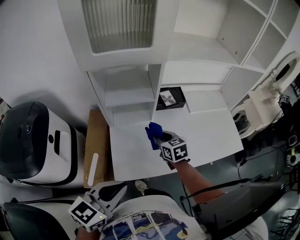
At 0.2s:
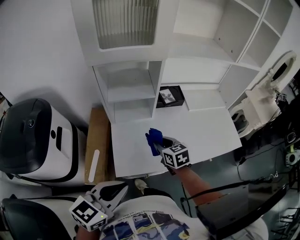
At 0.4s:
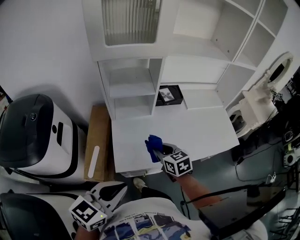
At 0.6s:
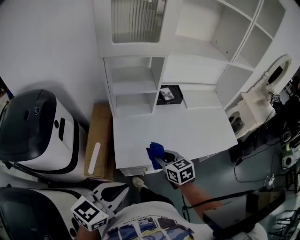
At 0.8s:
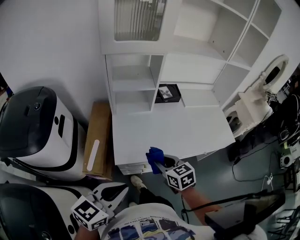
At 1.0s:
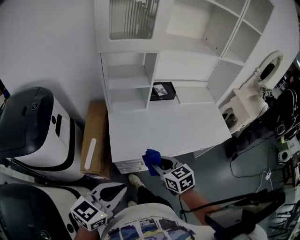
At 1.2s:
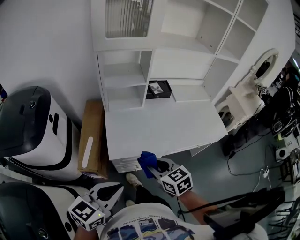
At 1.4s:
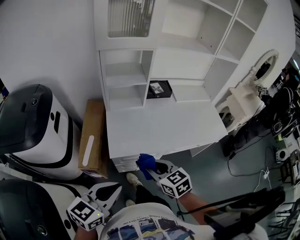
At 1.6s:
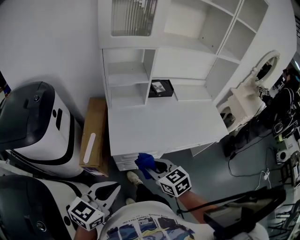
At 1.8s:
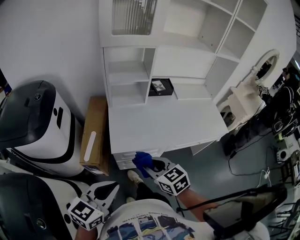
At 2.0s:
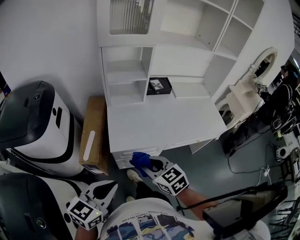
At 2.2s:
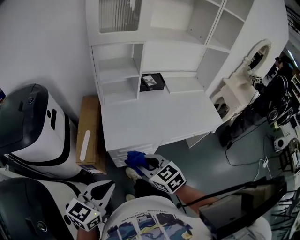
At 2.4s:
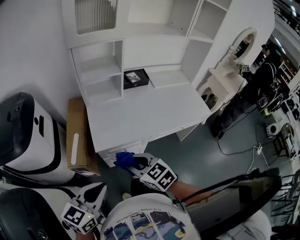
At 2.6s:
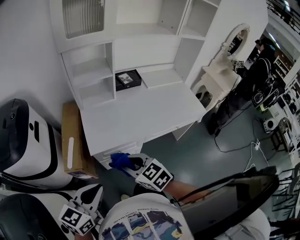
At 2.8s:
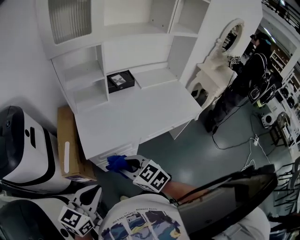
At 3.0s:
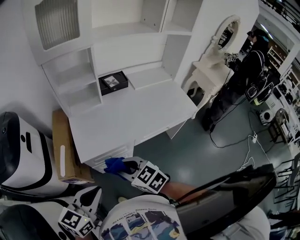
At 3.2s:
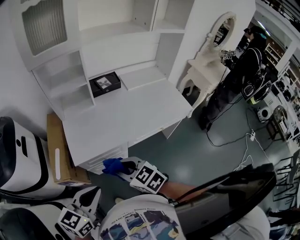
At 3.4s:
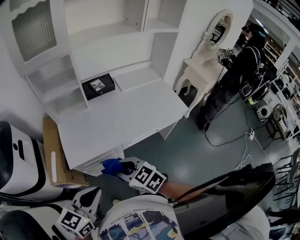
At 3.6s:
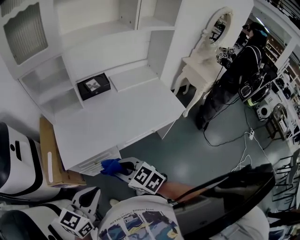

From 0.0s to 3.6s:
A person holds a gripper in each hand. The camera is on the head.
From 0.0s to 1.8s: The left gripper moves backward, roughly 20 cm, while the right gripper moves backward, approximately 35 cm.
From 1.8s to 3.6s: The grippers both shift to the right by roughly 15 cm.

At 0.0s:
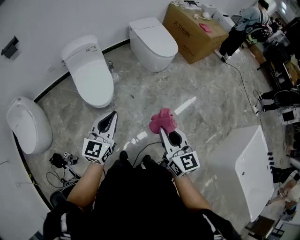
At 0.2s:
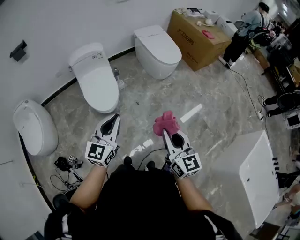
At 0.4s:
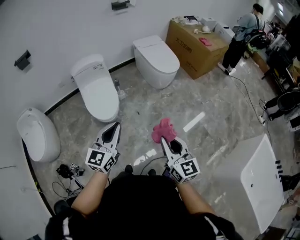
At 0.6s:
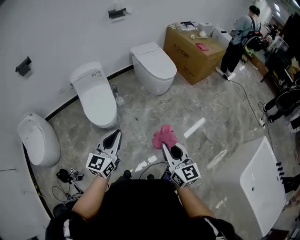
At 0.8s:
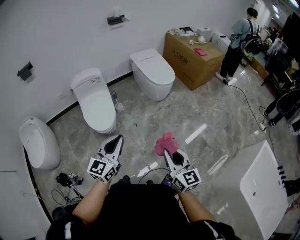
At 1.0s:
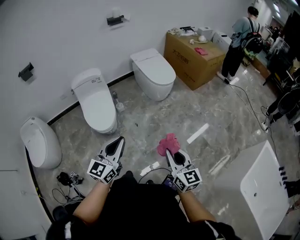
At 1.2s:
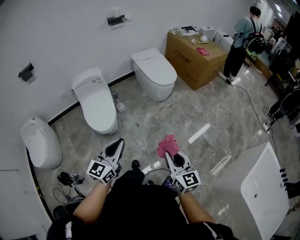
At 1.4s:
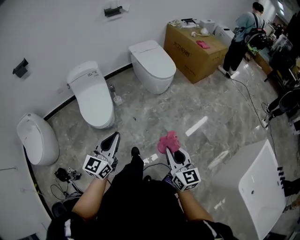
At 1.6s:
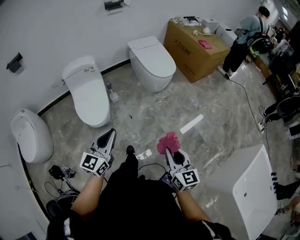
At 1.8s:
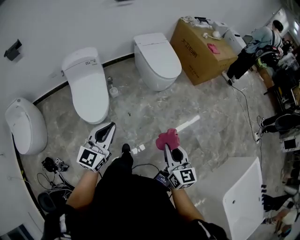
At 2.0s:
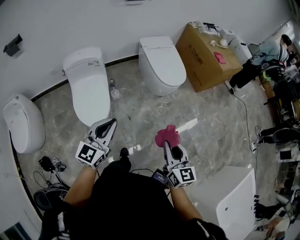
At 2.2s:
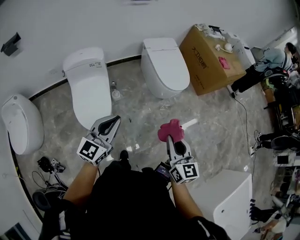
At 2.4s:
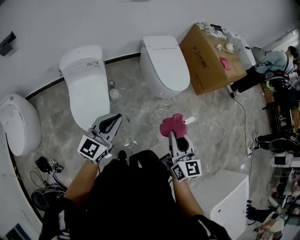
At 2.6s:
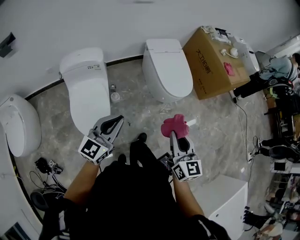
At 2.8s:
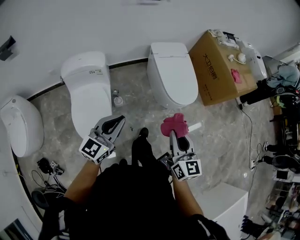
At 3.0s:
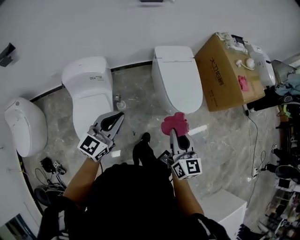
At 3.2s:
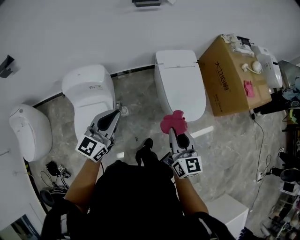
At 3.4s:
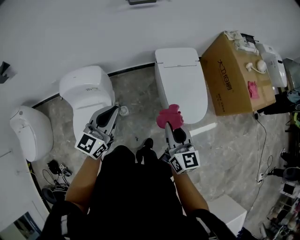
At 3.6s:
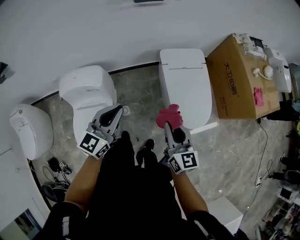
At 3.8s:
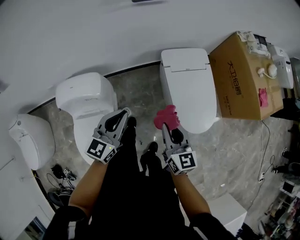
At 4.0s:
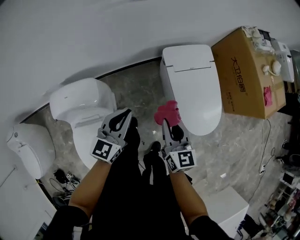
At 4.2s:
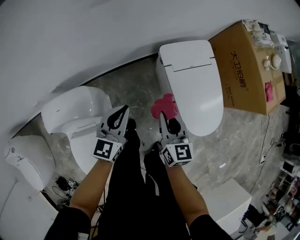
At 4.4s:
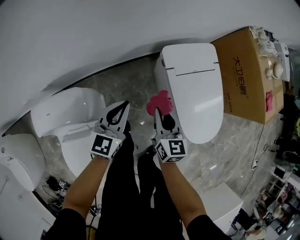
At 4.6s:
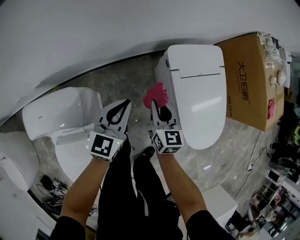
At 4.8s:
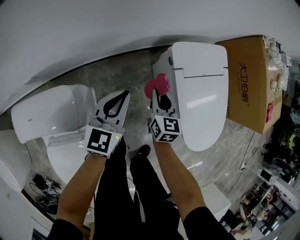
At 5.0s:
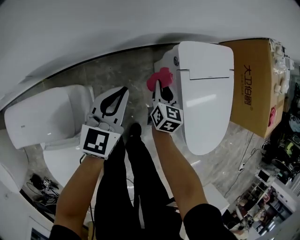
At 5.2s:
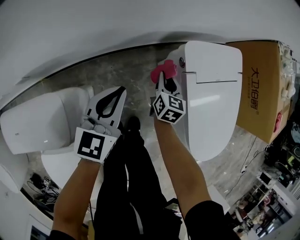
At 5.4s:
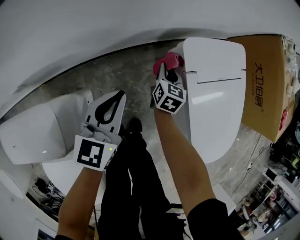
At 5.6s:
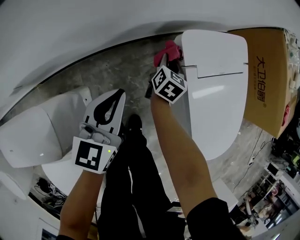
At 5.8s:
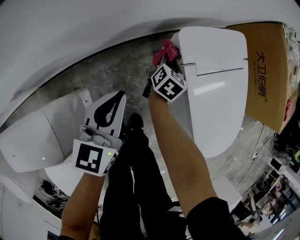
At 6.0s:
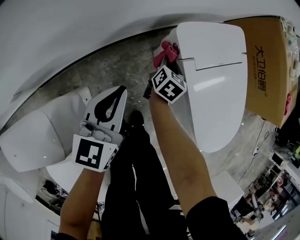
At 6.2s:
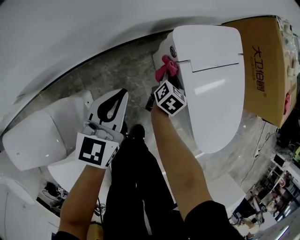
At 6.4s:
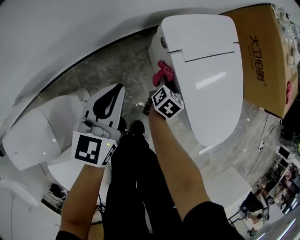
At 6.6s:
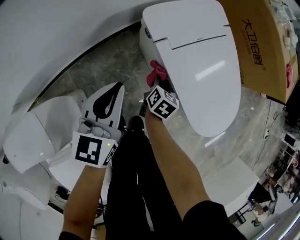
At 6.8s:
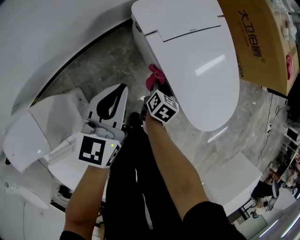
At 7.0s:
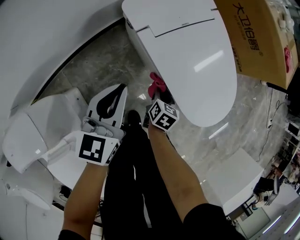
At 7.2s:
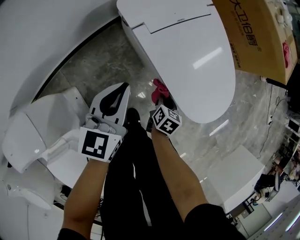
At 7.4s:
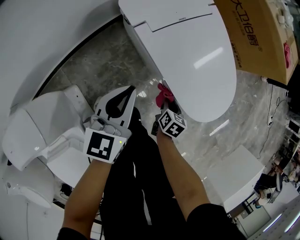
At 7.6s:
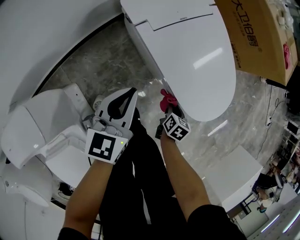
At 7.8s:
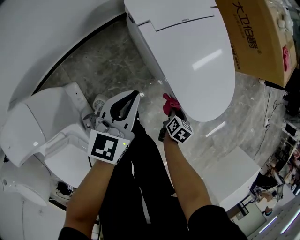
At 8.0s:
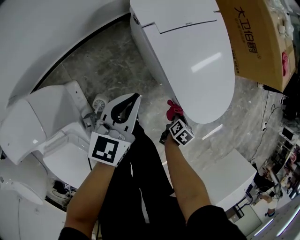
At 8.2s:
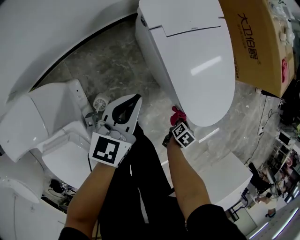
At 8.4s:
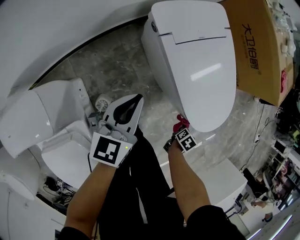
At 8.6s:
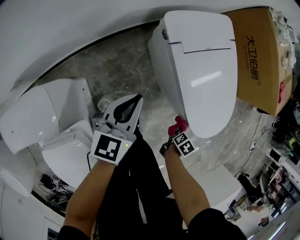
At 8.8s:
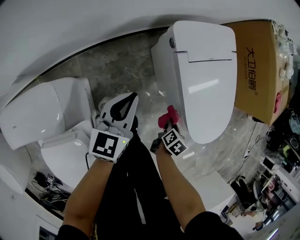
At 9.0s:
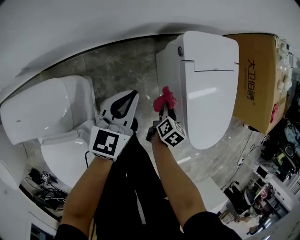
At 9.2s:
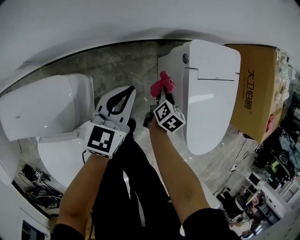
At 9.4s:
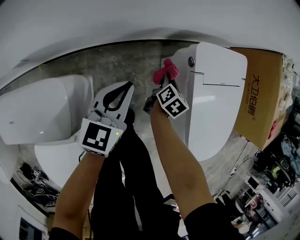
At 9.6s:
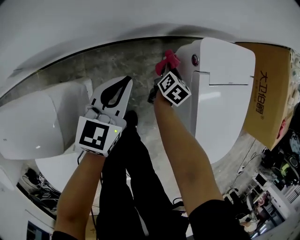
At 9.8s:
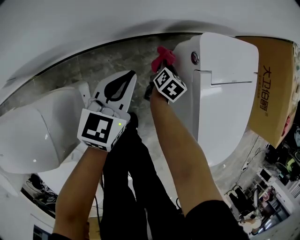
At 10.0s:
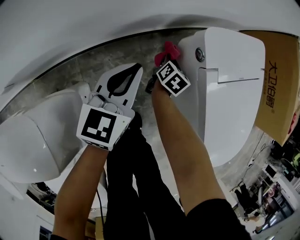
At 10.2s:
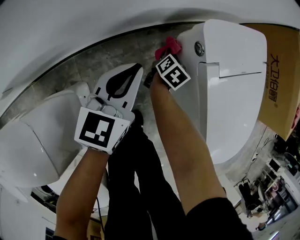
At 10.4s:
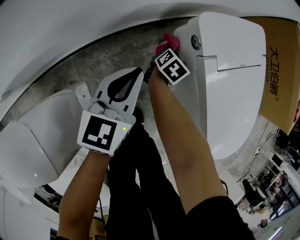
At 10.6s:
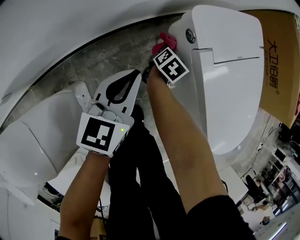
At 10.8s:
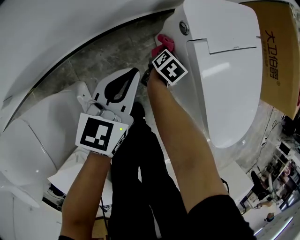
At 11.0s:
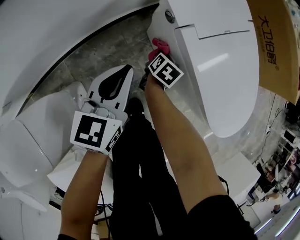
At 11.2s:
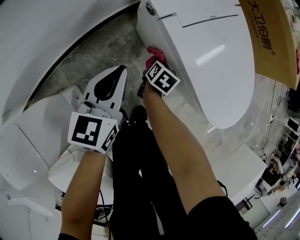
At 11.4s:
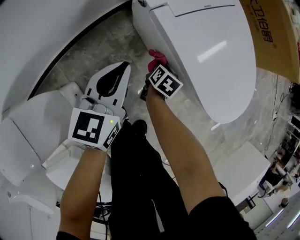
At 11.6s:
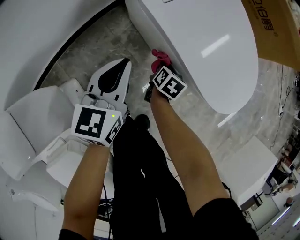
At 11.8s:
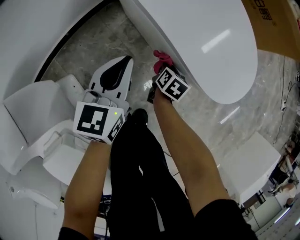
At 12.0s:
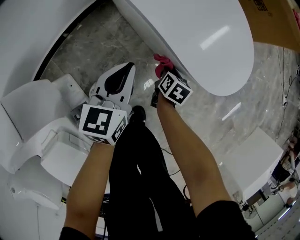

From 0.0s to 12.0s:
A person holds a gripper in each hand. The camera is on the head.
From 0.0s to 1.6s: The left gripper goes roughly 10 cm to the right; the right gripper shifts some 15 cm to the right.
From 1.6s to 3.0s: The two grippers travel together, forward, some 40 cm.
From 3.0s to 4.4s: The left gripper travels forward and downward by about 40 cm, while the right gripper goes roughly 50 cm forward, downward and to the left.
From 4.4s to 6.0s: The left gripper heads downward and forward, covering approximately 15 cm; the right gripper travels downward and forward by about 35 cm, and changes its angle by approximately 40 degrees.
From 6.0s to 7.6s: The right gripper goes about 40 cm to the right and backward, and turns by approximately 20 degrees. The left gripper shifts approximately 20 cm to the right.
From 7.6s to 9.0s: The right gripper changes place by roughly 20 cm. The left gripper shifts by about 15 cm.
From 9.0s to 10.4s: The left gripper goes about 15 cm downward and forward. Meanwhile the right gripper travels forward and downward by about 25 cm.
From 10.4s to 12.0s: The left gripper is displaced to the right and backward by approximately 20 cm; the right gripper shifts about 35 cm to the right and backward.

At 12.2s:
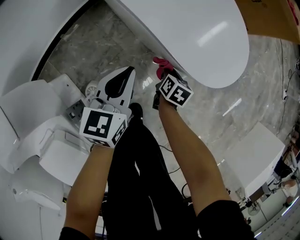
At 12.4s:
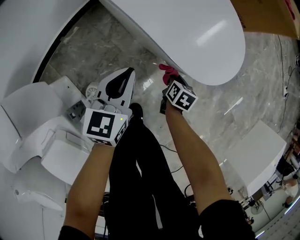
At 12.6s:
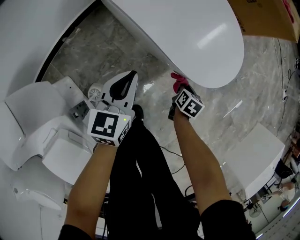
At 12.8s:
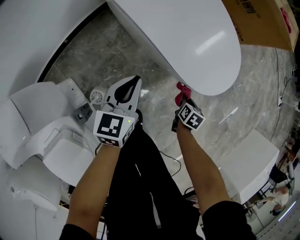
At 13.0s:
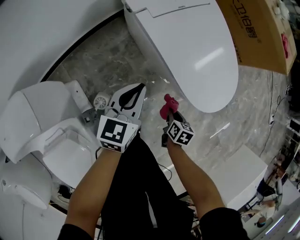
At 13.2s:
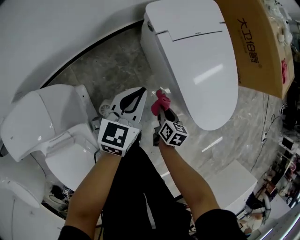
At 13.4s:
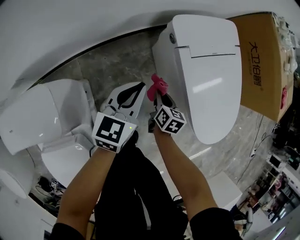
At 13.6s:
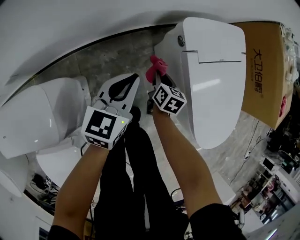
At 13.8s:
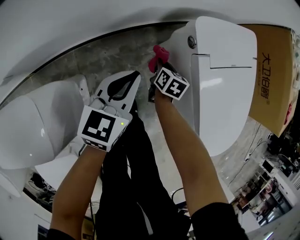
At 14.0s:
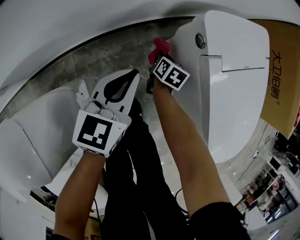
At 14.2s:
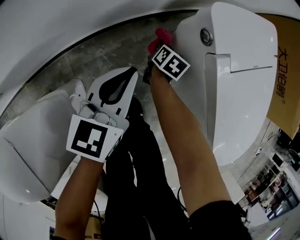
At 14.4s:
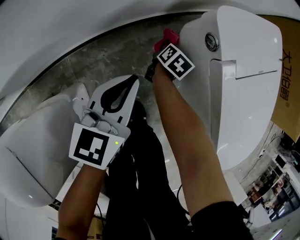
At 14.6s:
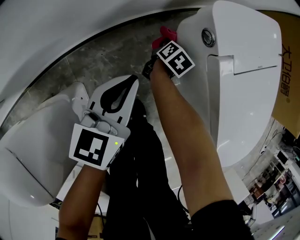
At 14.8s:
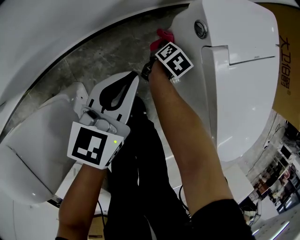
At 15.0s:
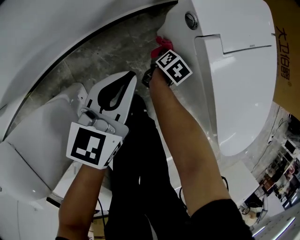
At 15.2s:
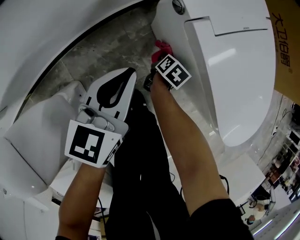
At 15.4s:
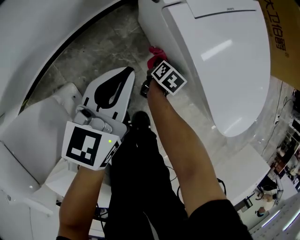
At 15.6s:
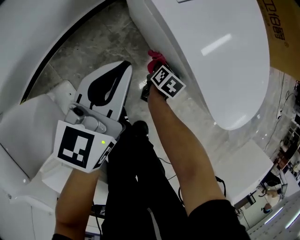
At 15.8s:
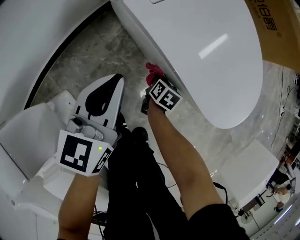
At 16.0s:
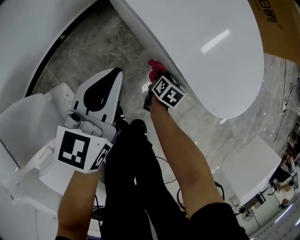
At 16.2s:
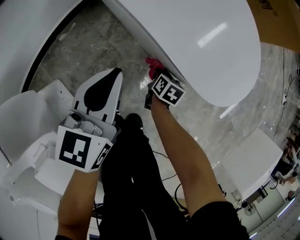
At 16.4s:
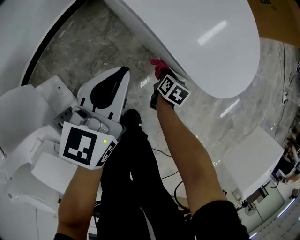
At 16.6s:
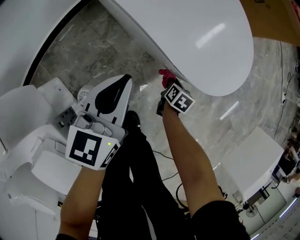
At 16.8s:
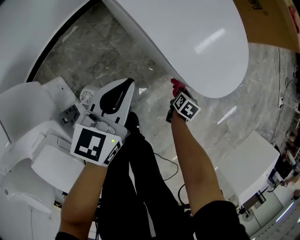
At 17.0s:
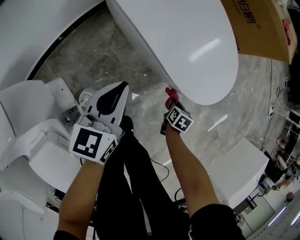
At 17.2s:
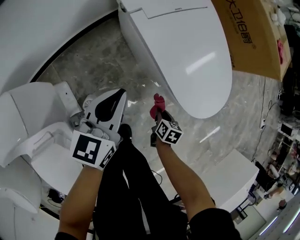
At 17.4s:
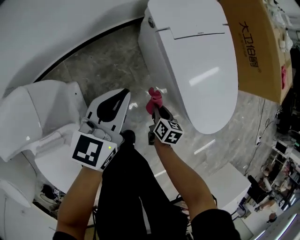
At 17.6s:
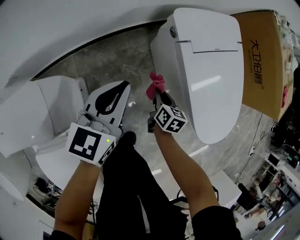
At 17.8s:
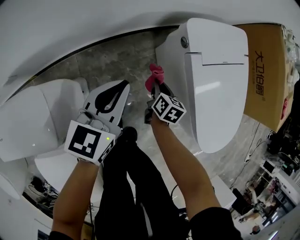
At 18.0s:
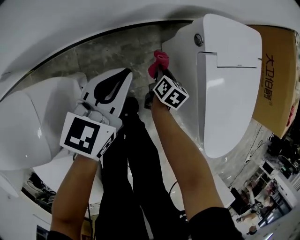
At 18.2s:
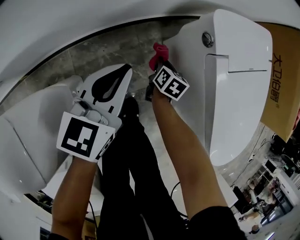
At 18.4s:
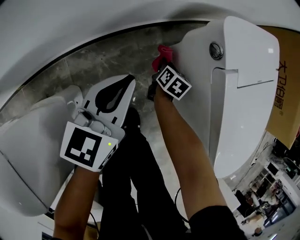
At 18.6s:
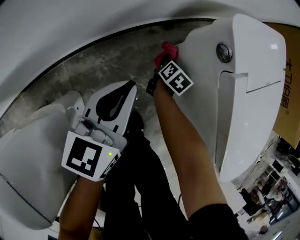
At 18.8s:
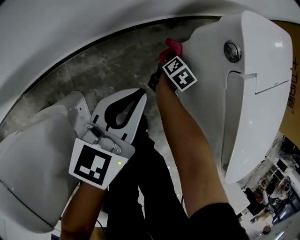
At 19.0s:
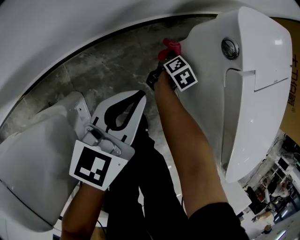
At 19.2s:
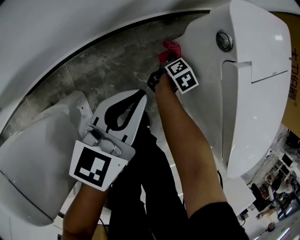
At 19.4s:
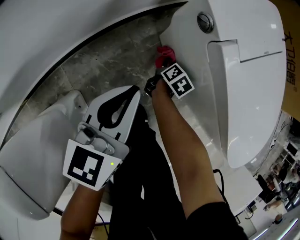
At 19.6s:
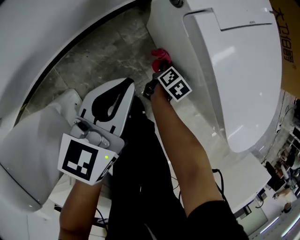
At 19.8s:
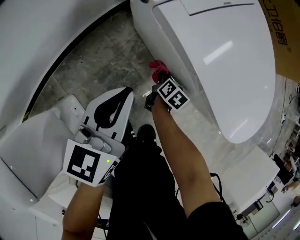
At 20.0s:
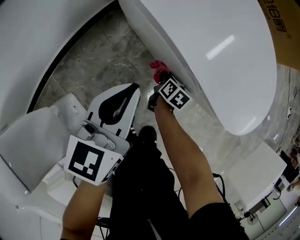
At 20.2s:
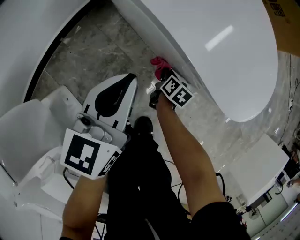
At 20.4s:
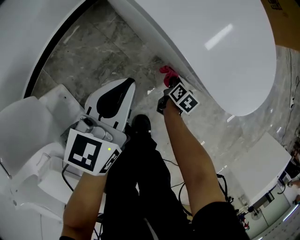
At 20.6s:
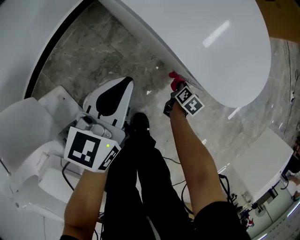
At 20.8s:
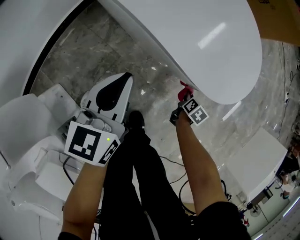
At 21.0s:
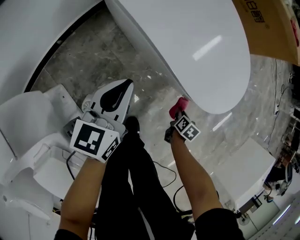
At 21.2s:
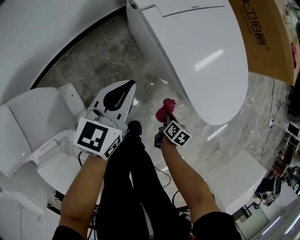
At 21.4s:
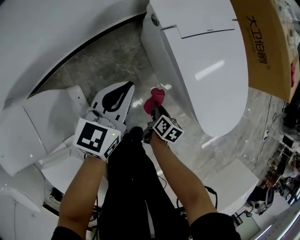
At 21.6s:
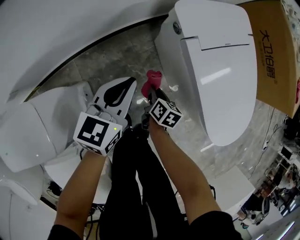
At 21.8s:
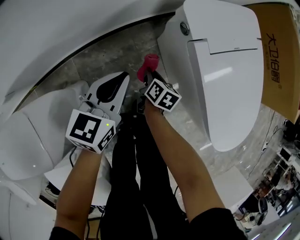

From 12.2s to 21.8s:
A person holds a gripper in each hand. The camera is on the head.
From 12.2s to 13.8s: The right gripper travels upward and back again, some 10 cm each way, and rotates roughly 30 degrees. The left gripper moves roughly 25 cm.
From 13.8s to 15.4s: The left gripper is displaced to the right by about 10 cm. The right gripper goes roughly 20 cm to the right, downward and backward, and turns by some 40 degrees.
From 15.4s to 17.0s: The right gripper is displaced to the right and backward by roughly 35 cm. Meanwhile the left gripper goes roughly 15 cm to the right and backward.
From 17.0s to 18.6s: The left gripper moves approximately 30 cm; the right gripper moves approximately 60 cm, and turns by some 20 degrees.
From 18.6s to 20.2s: The right gripper is displaced to the right and backward by some 35 cm, and changes its angle by roughly 20 degrees; the left gripper moves to the right, approximately 25 cm, and swivels approximately 20 degrees.
From 20.2s to 21.8s: The right gripper ends up some 30 cm from where it was, and rotates roughly 30 degrees. Meanwhile the left gripper changes place by approximately 20 cm.
